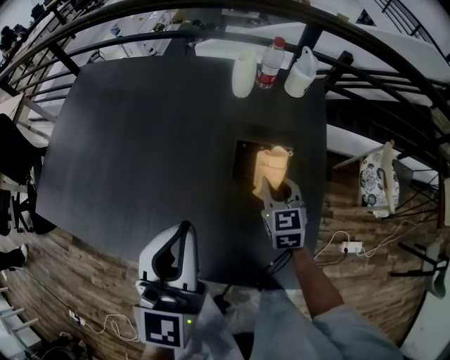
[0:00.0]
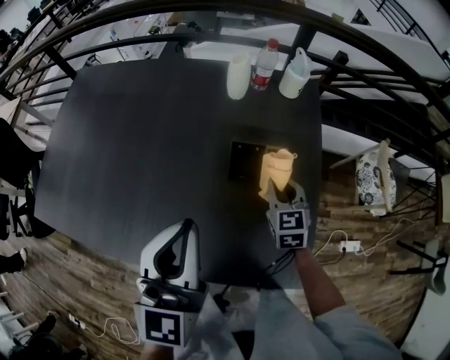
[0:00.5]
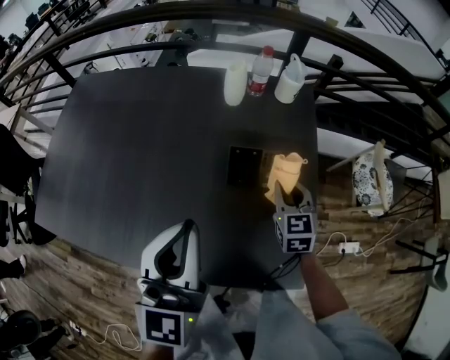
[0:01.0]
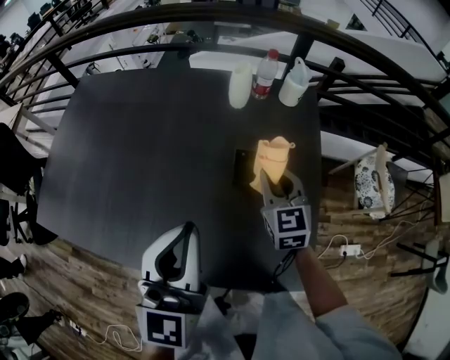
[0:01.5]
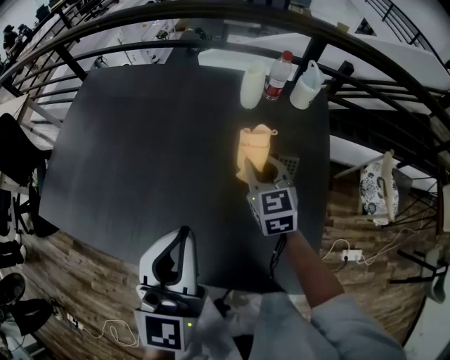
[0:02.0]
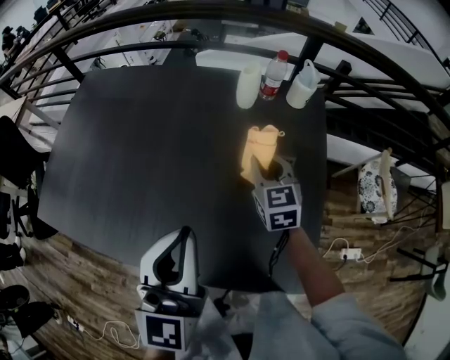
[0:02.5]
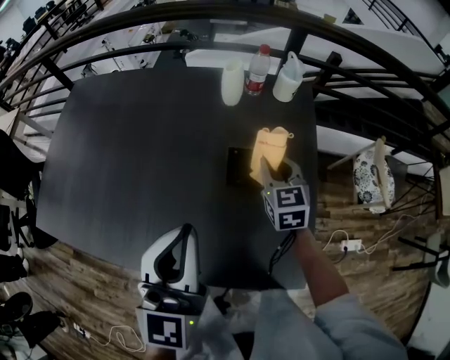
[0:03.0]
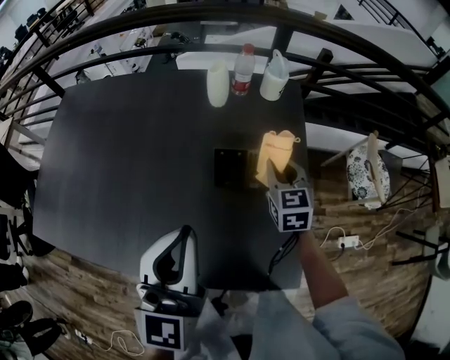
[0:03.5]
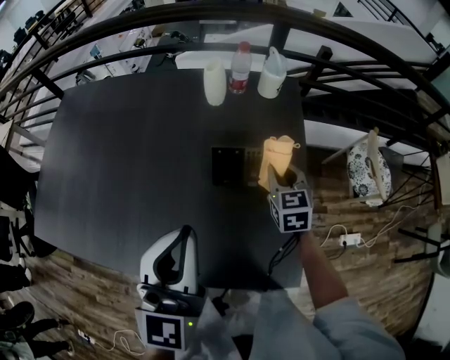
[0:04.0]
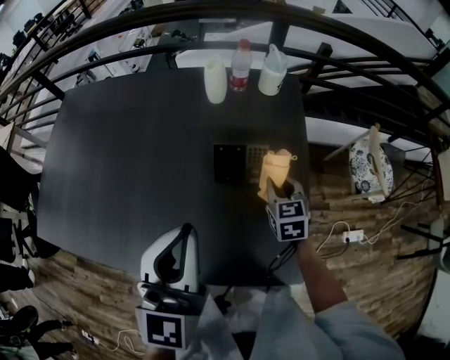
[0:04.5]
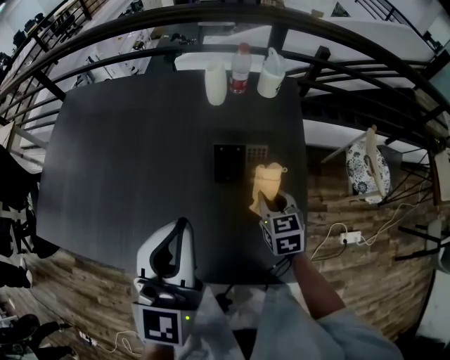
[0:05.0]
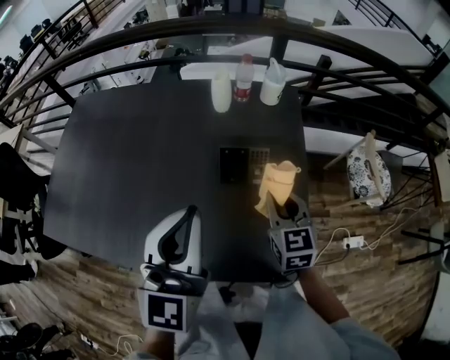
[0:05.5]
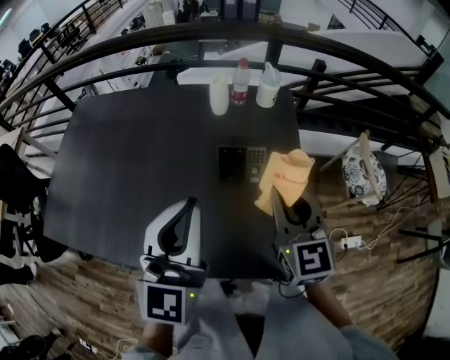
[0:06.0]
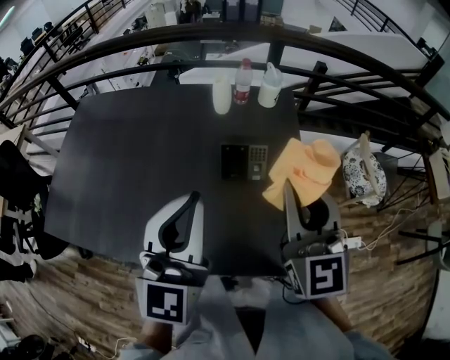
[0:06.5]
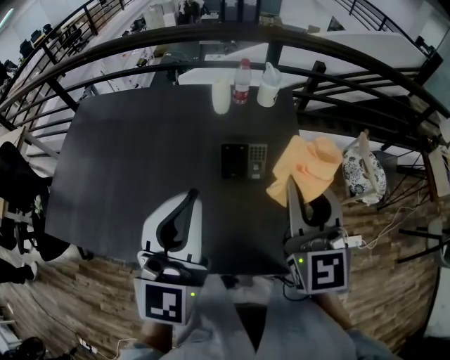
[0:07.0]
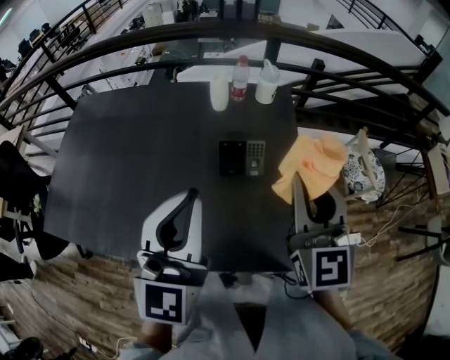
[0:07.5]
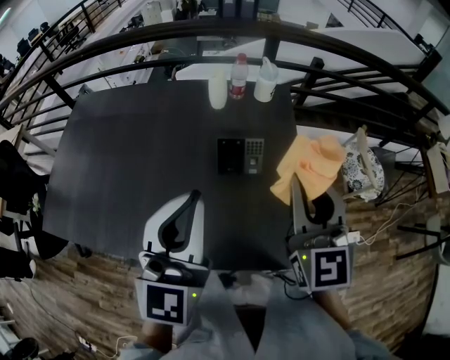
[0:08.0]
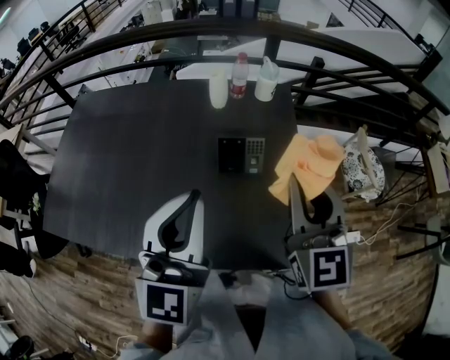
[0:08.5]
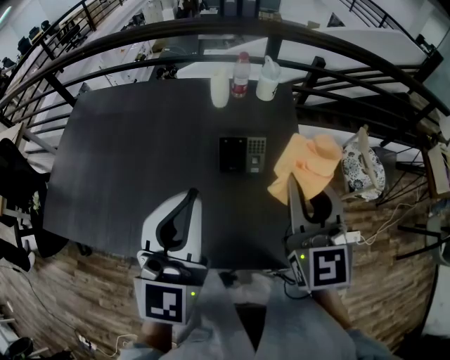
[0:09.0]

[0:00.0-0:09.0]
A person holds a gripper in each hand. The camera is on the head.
0:00.0 to 0:02.0: The right gripper shifts about 10 cm to the left, upward and forward.
0:02.0 to 0:04.5: The right gripper heads to the right and downward, covering about 15 cm, and swivels some 20 degrees; the left gripper travels to the right by approximately 5 cm.
0:04.5 to 0:07.0: The right gripper moves upward, about 30 cm, and angles its fingers upward, by about 40 degrees; the left gripper shifts some 5 cm upward.
0:07.0 to 0:09.0: The grippers move only a little.

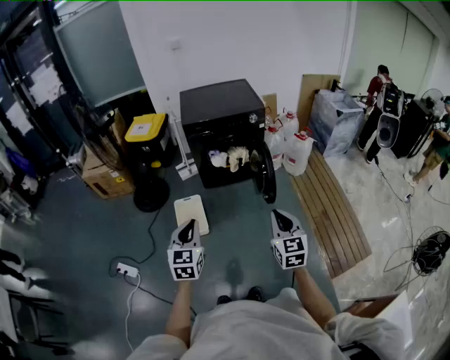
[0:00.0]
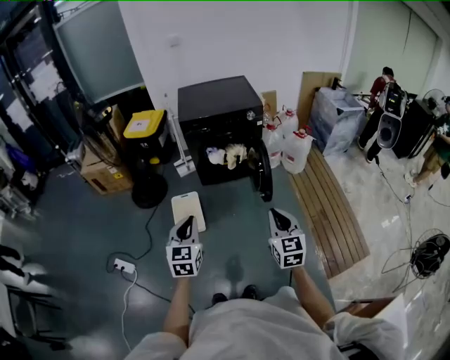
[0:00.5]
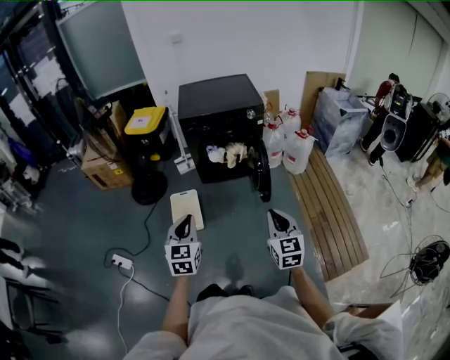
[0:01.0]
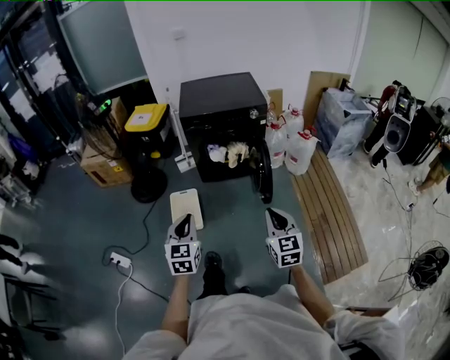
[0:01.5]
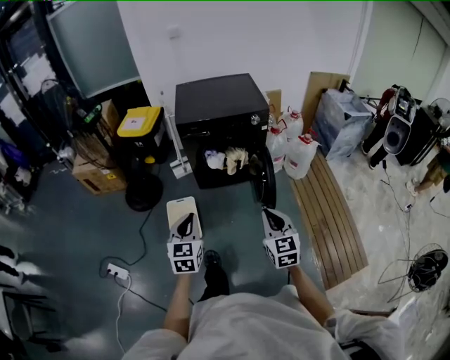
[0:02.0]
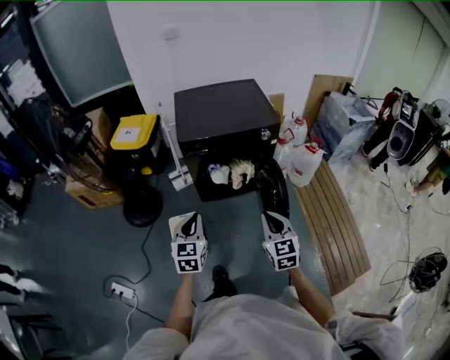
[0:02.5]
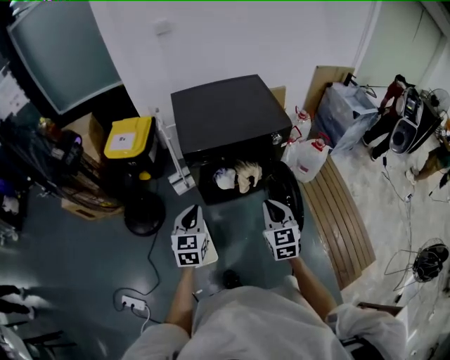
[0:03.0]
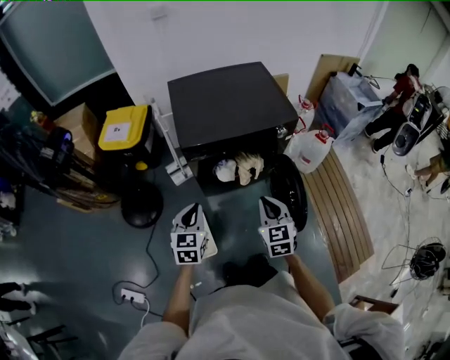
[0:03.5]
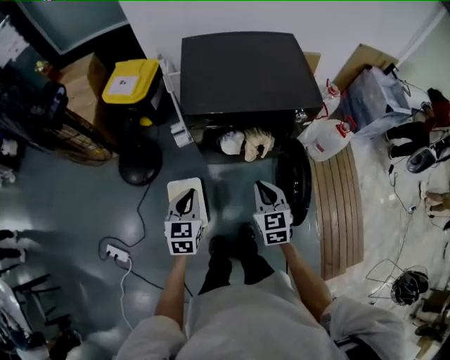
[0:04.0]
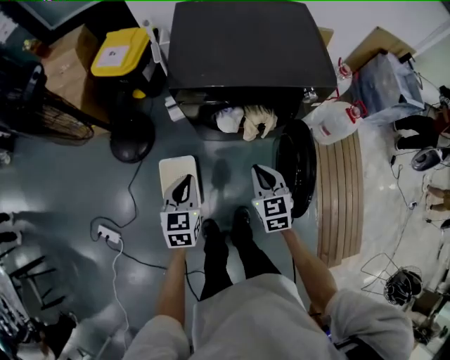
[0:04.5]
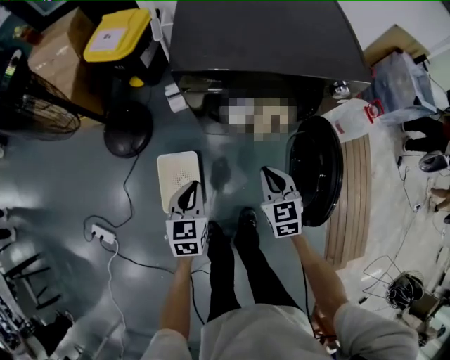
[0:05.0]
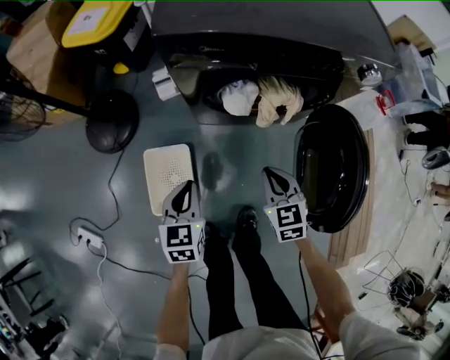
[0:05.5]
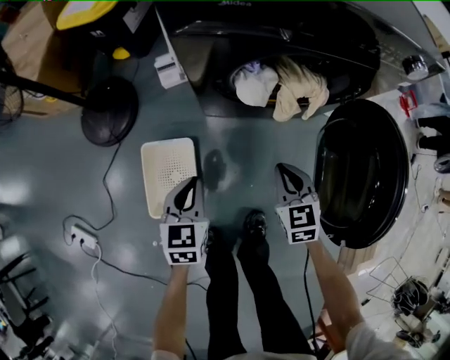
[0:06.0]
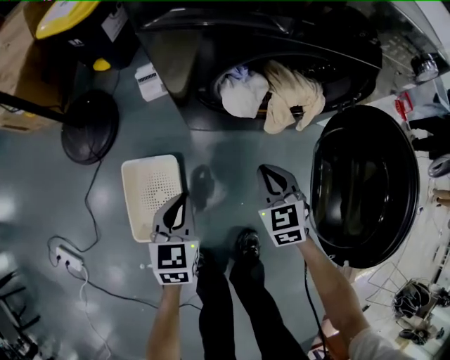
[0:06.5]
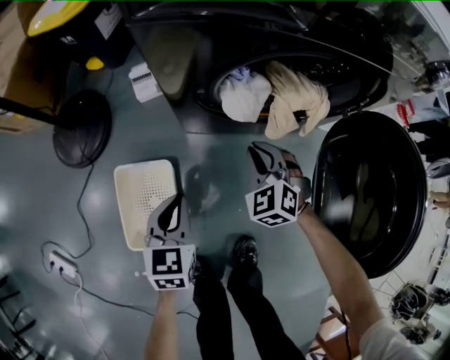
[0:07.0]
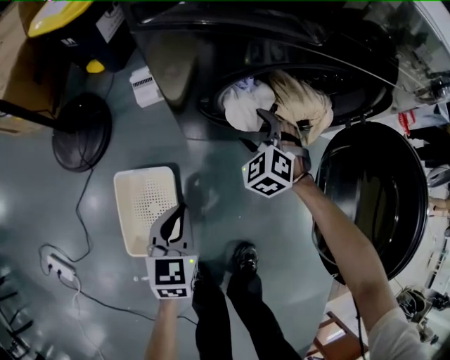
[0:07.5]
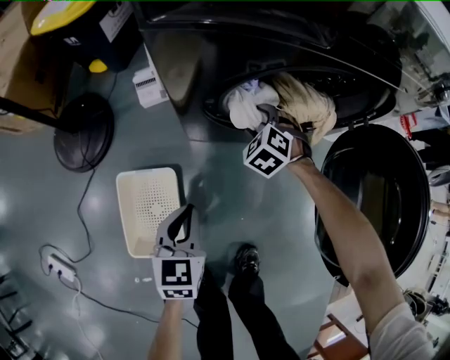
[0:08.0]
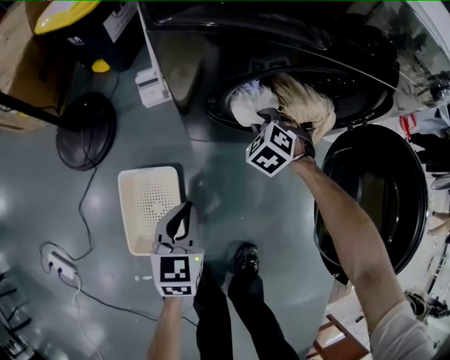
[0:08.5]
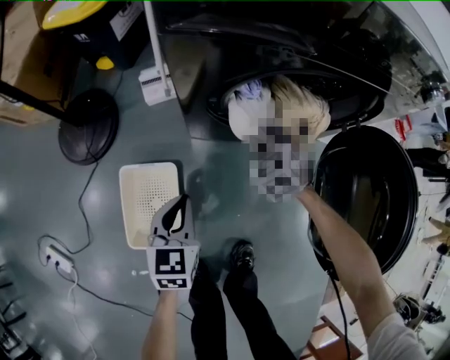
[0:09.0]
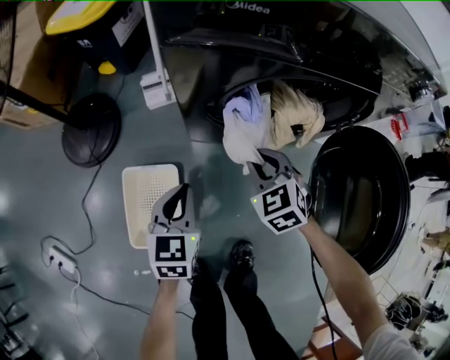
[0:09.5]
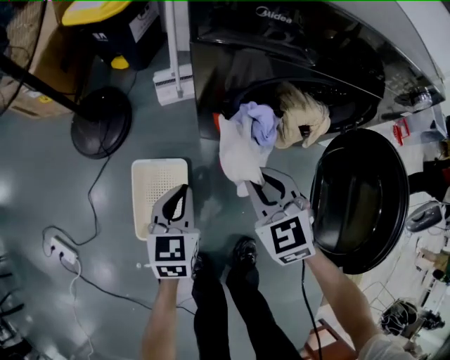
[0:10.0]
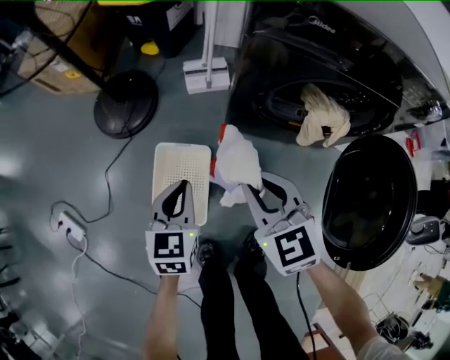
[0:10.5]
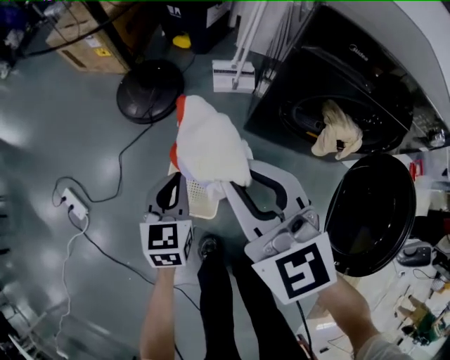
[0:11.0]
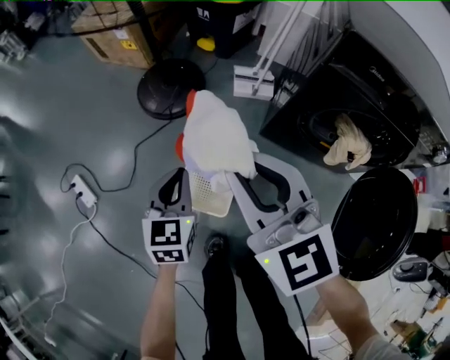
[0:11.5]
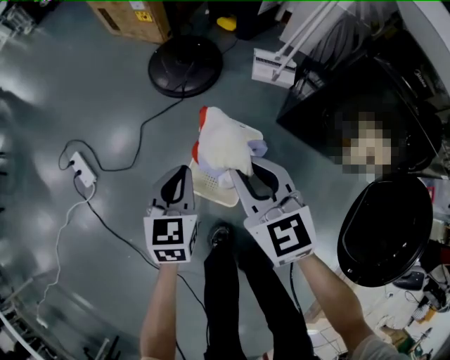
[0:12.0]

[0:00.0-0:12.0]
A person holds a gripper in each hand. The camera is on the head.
0:00.0 to 0:02.0: The two grippers go roughly 15 cm forward.
0:02.0 to 0:04.0: The two grippers go about 40 cm forward.
0:04.0 to 0:06.0: Both grippers travel together downward, roughly 40 cm.
0:06.0 to 0:08.0: The right gripper travels forward and downward by some 30 cm, twists approximately 40 degrees counterclockwise, seen from behind, and opens. The left gripper shifts some 10 cm downward.
0:08.0 to 0:10.0: The right gripper travels upward and backward by some 30 cm, changes its angle by some 40 degrees, and closes. Meanwhile the left gripper shifts roughly 10 cm upward.
0:10.0 to 0:12.0: The right gripper reaches some 20 cm upward, then returns, and rotates some 30 degrees, while the left gripper moves roughly 10 cm upward and comes back, and rotates some 30 degrees.

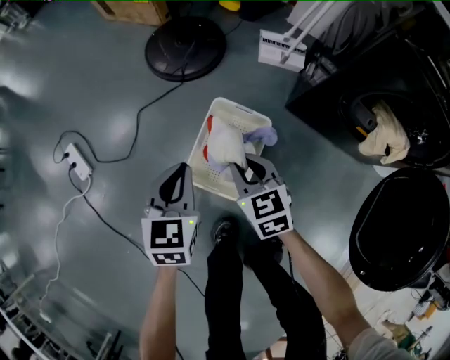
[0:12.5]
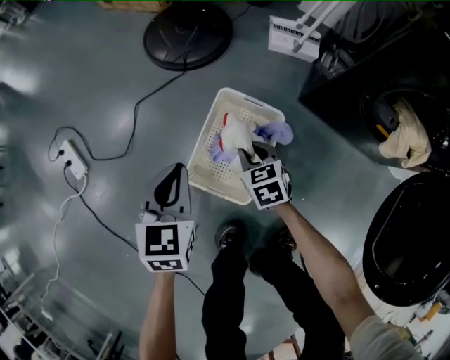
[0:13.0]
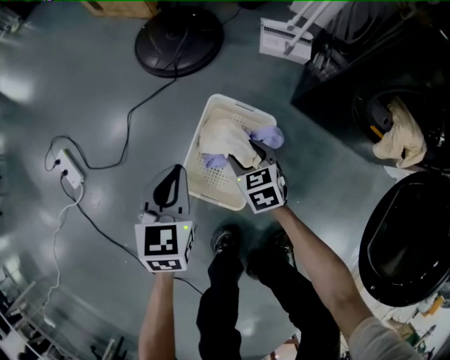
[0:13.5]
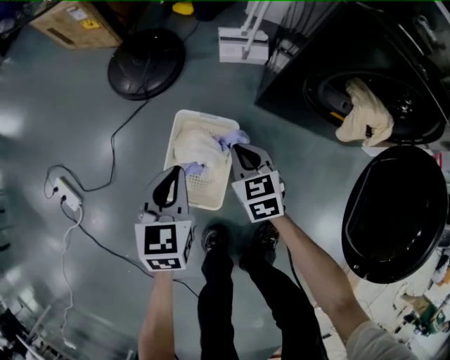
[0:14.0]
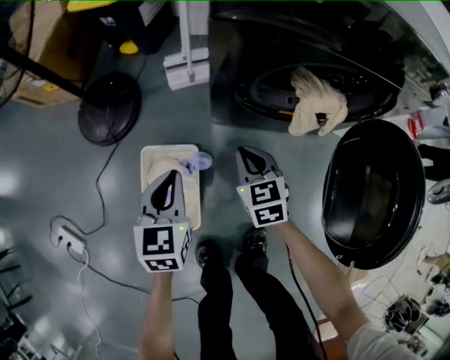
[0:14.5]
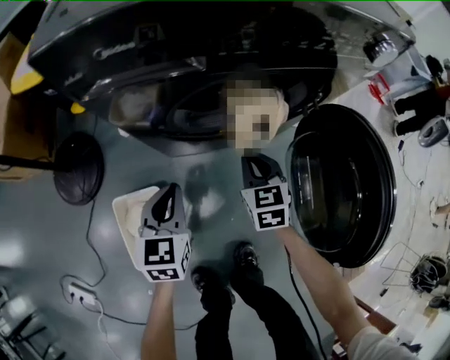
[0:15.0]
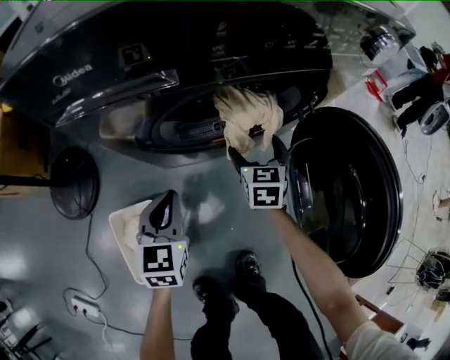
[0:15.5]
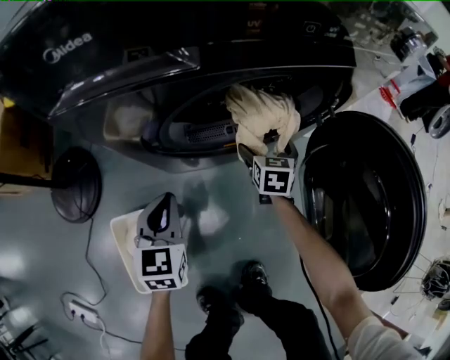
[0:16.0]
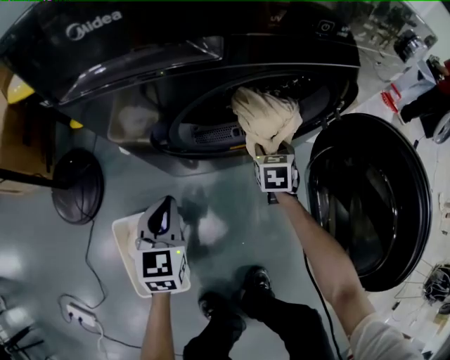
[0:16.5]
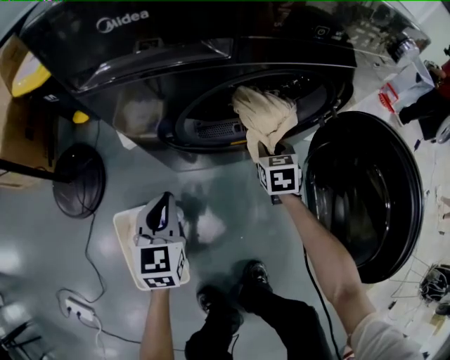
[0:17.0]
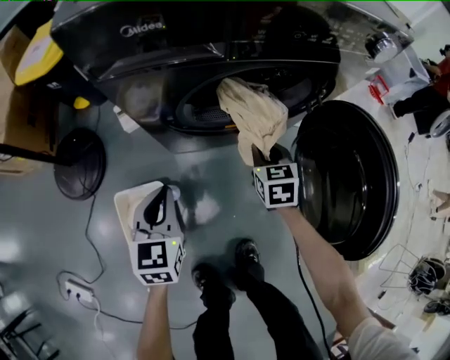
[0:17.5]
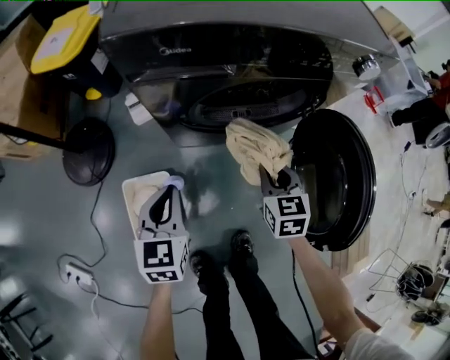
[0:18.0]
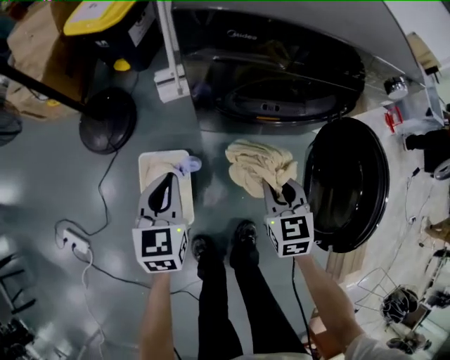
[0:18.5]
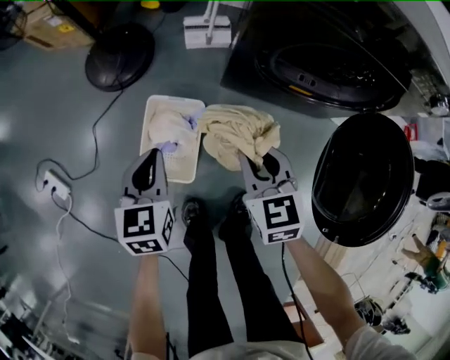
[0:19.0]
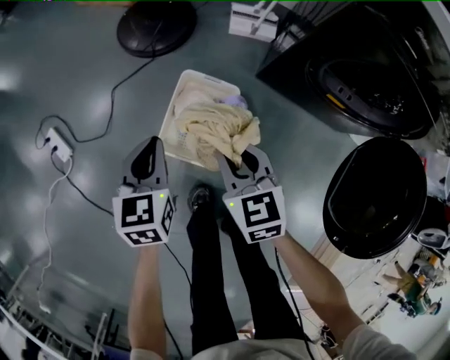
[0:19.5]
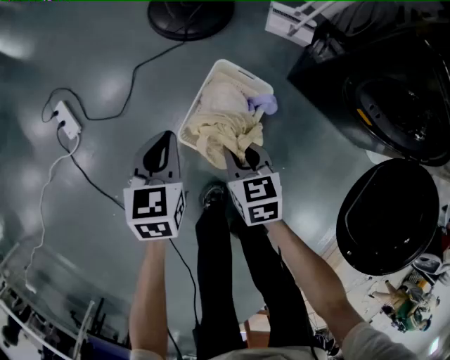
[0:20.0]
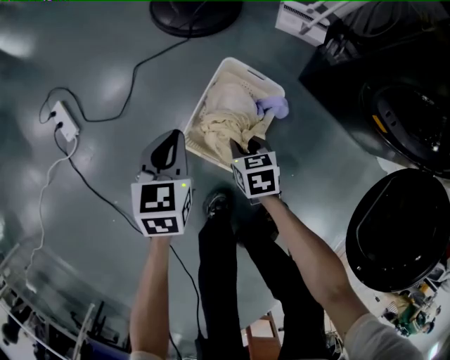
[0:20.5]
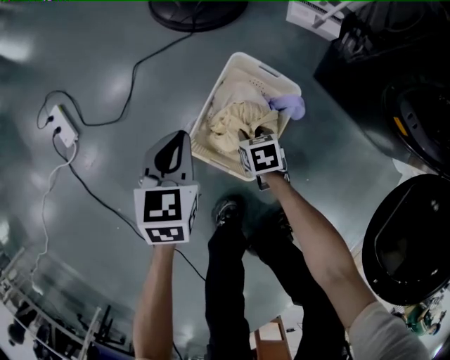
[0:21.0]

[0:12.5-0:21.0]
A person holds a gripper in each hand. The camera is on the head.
0:12.5 to 0:14.5: The right gripper reaches about 15 cm downward, then returns, swivels approximately 30 degrees, and opens, then closes again, while the left gripper changes place by roughly 25 cm, and rotates approximately 20 degrees.
0:14.5 to 0:16.5: The right gripper changes place by roughly 35 cm, turns by some 40 degrees, and opens, then closes again. Meanwhile the left gripper moves about 20 cm.
0:16.5 to 0:19.0: The right gripper moves roughly 50 cm, and rotates some 40 degrees. The left gripper shifts by some 30 cm, and rotates about 30 degrees.
0:19.0 to 0:21.0: The left gripper shifts approximately 20 cm downward, while the right gripper goes about 40 cm downward, and turns by about 40 degrees.
